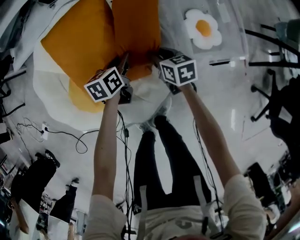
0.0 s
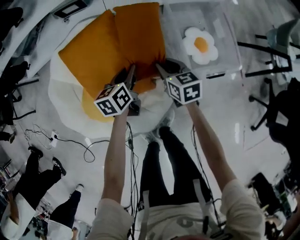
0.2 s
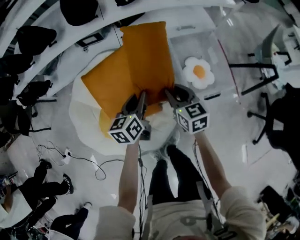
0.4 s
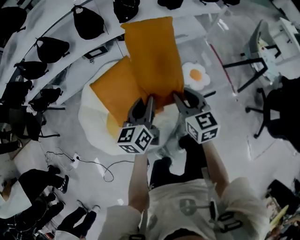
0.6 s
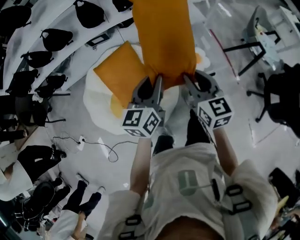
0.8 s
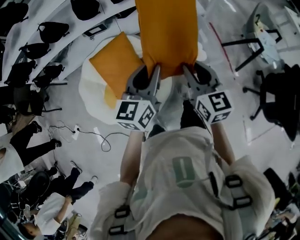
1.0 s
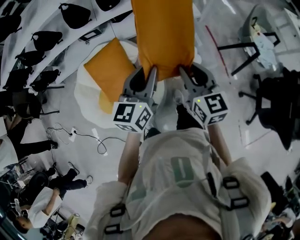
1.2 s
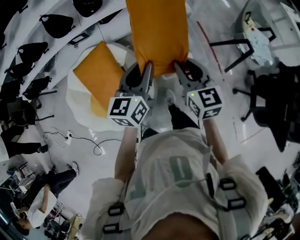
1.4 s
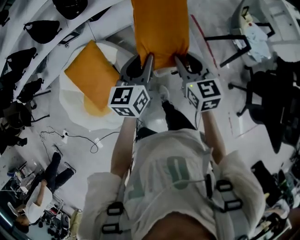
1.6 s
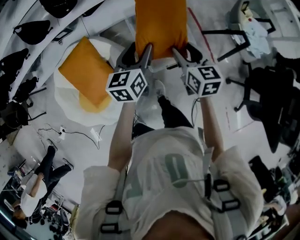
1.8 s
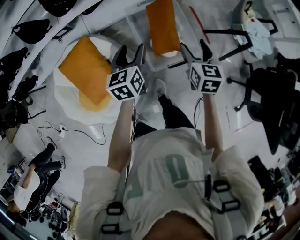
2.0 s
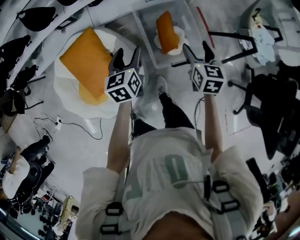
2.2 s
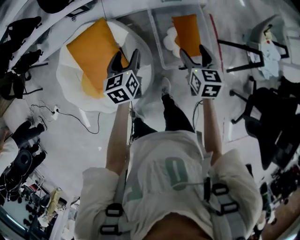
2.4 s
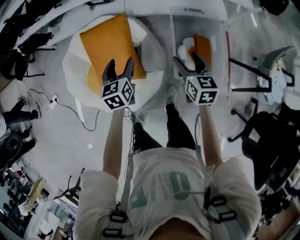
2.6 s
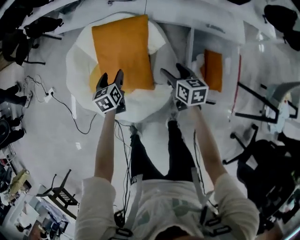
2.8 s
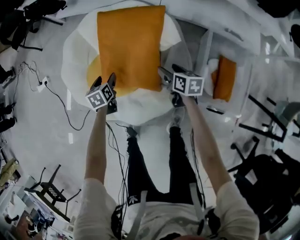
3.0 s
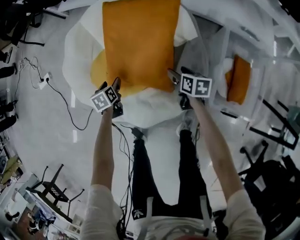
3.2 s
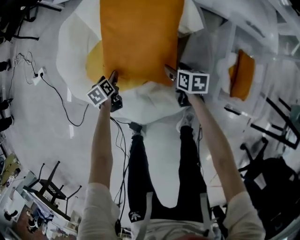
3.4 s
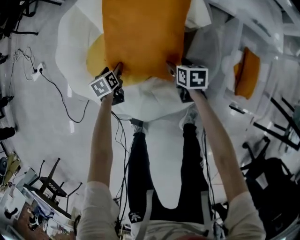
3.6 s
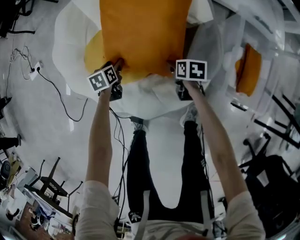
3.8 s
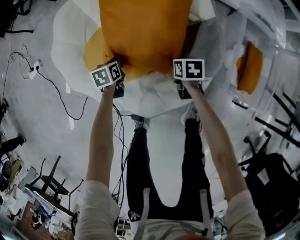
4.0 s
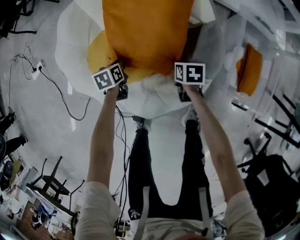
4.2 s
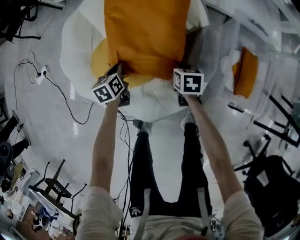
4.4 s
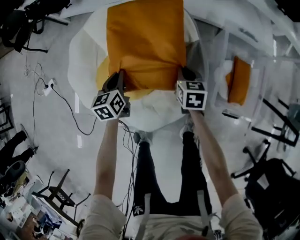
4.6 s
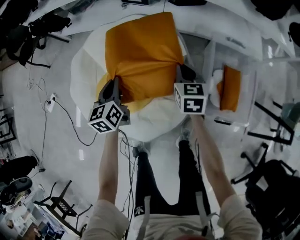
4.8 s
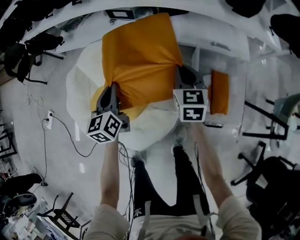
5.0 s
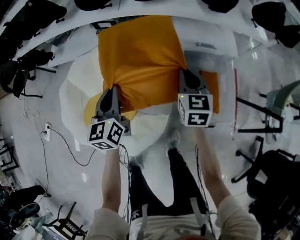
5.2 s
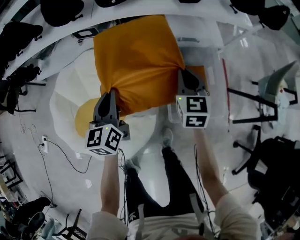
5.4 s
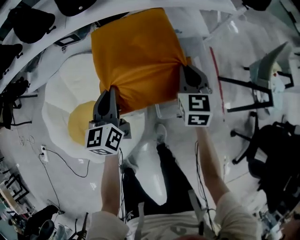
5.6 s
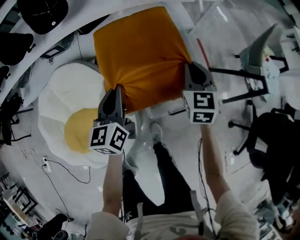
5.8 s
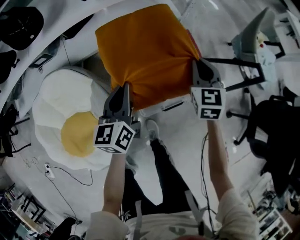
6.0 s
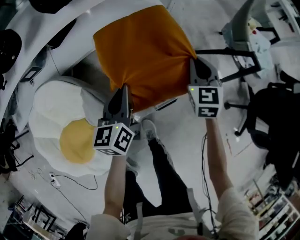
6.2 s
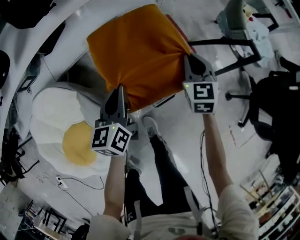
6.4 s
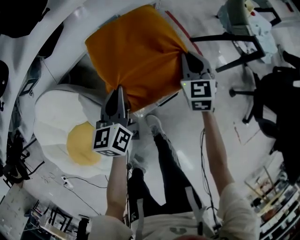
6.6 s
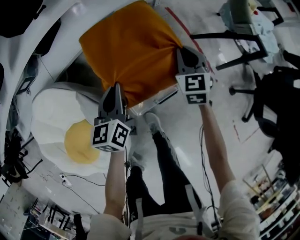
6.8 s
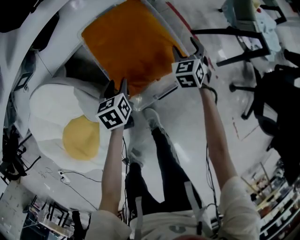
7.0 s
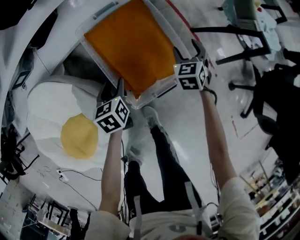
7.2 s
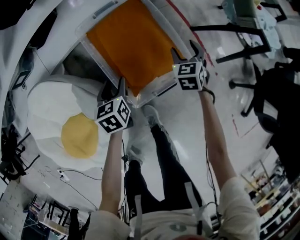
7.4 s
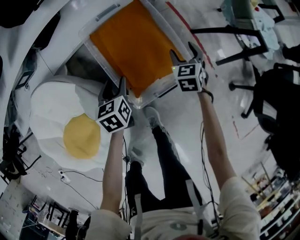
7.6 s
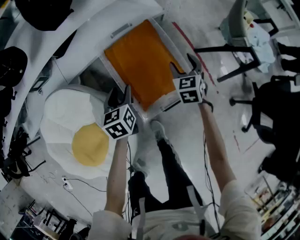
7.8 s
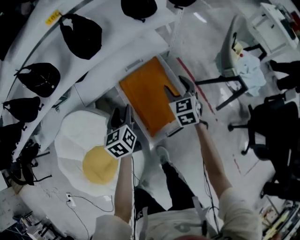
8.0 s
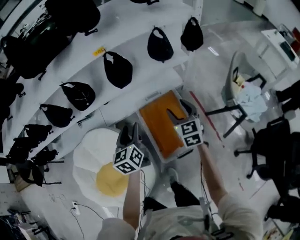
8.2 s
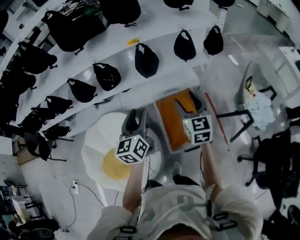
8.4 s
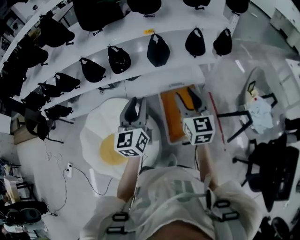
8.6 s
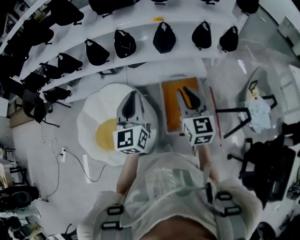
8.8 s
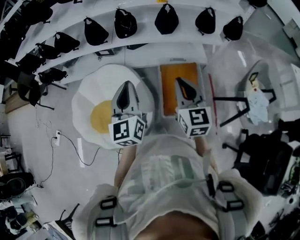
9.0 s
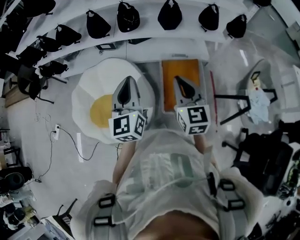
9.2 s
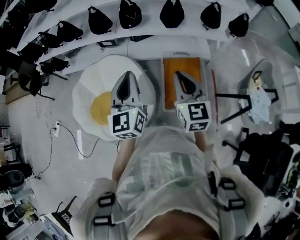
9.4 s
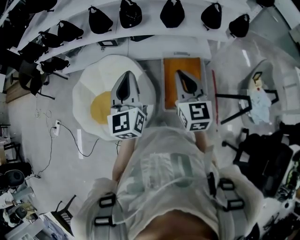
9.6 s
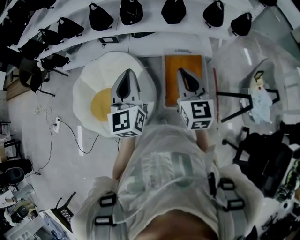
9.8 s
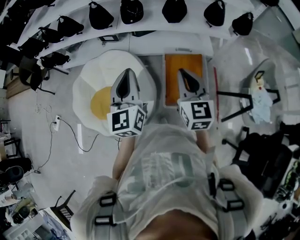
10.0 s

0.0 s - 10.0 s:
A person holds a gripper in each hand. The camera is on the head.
0.0 s - 1.4 s: Both grippers move upward and to the right, approximately 60 cm. The left gripper changes its angle by roughly 40 degrees. Meanwhile the right gripper turns by about 40 degrees.
1.4 s - 2.8 s: Both grippers travel together downward, approximately 30 cm. The left gripper tilts its fingers some 30 degrees downward, and opens, while the right gripper turns by approximately 40 degrees, and opens up.
2.8 s - 4.2 s: The right gripper goes about 35 cm downward, turns by roughly 30 degrees, and closes its fingers, while the left gripper is displaced downward and to the left by some 30 cm, turns by roughly 20 degrees, and closes its fingers.
4.2 s - 5.8 s: The pair of grippers is taken roughly 50 cm. The left gripper angles its fingers upward, by about 40 degrees, while the right gripper tilts its fingers about 40 degrees upward.
5.8 s - 7.2 s: The two grippers go approximately 25 cm downward and to the right. The left gripper tilts its fingers some 30 degrees downward, and opens up. Meanwhile the right gripper swivels approximately 30 degrees, and opens its fingers.
7.2 s - 8.6 s: Both grippers move upward, some 60 cm. The left gripper angles its fingers upward, by roughly 50 degrees. The right gripper angles its fingers upward, by some 40 degrees.
8.6 s - 10.0 s: The grippers both shift backward and to the left by roughly 10 cm. The left gripper closes its fingers. The right gripper closes up.

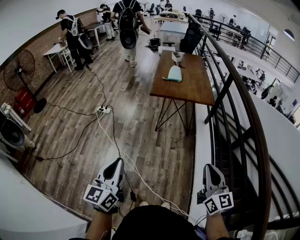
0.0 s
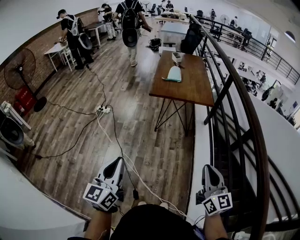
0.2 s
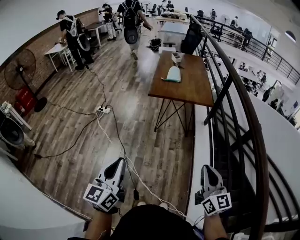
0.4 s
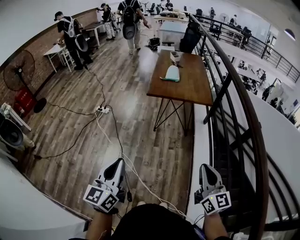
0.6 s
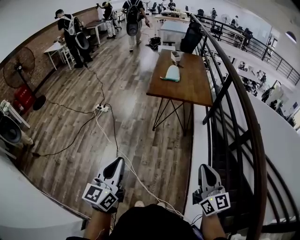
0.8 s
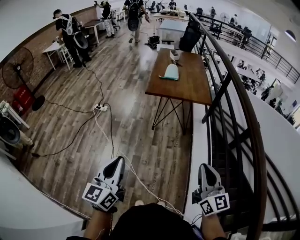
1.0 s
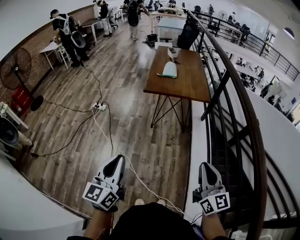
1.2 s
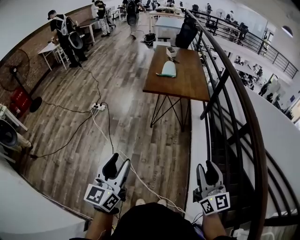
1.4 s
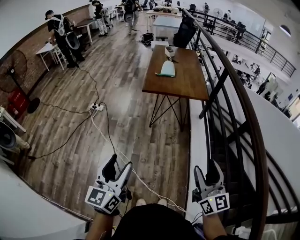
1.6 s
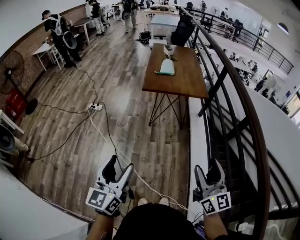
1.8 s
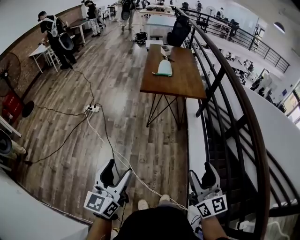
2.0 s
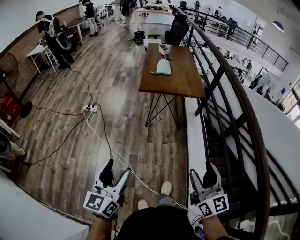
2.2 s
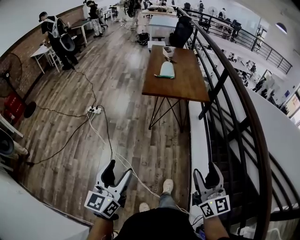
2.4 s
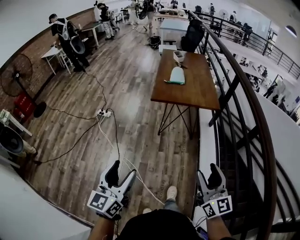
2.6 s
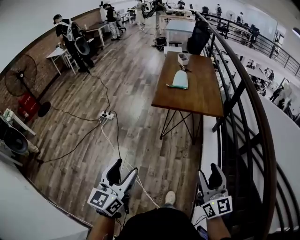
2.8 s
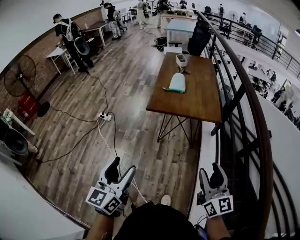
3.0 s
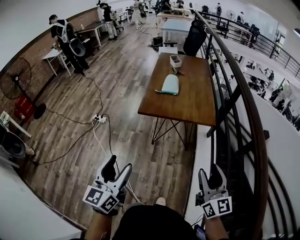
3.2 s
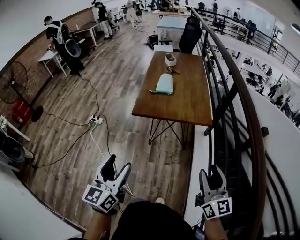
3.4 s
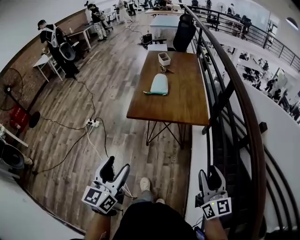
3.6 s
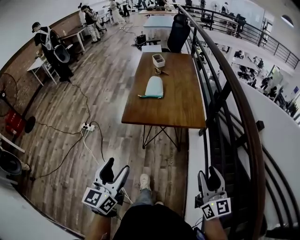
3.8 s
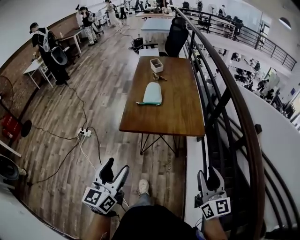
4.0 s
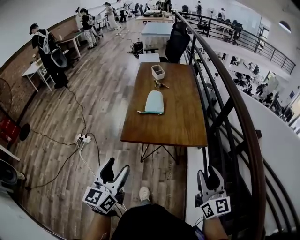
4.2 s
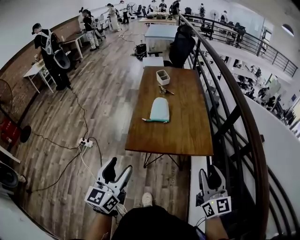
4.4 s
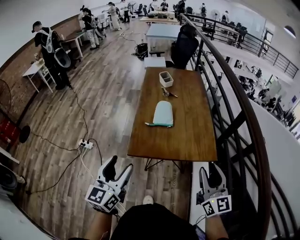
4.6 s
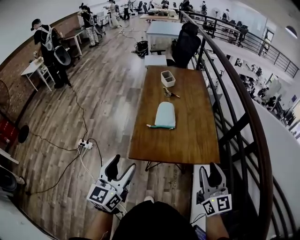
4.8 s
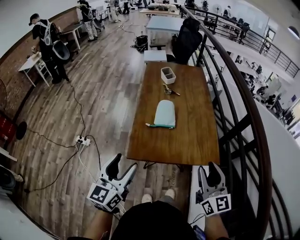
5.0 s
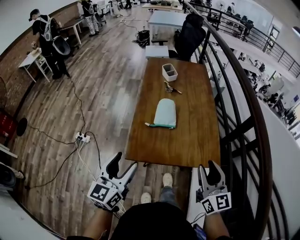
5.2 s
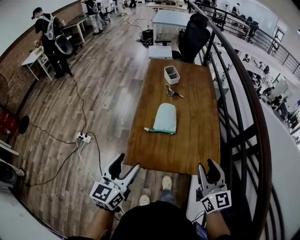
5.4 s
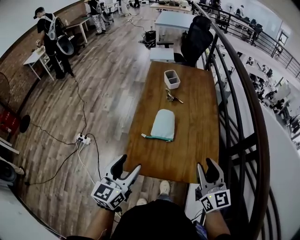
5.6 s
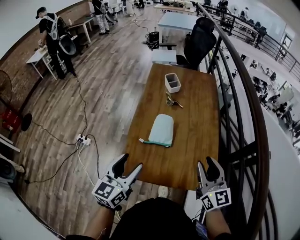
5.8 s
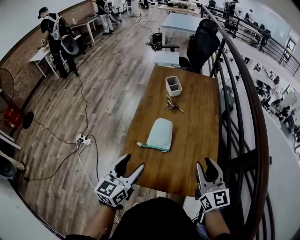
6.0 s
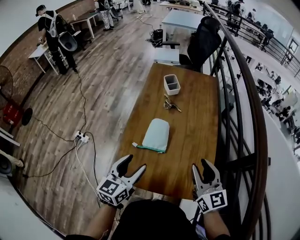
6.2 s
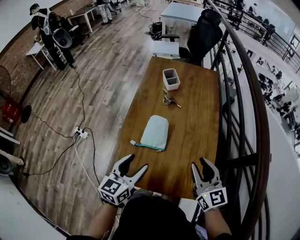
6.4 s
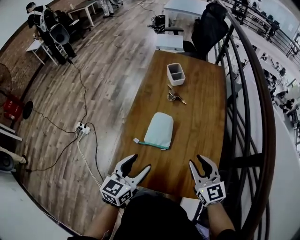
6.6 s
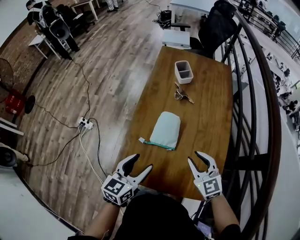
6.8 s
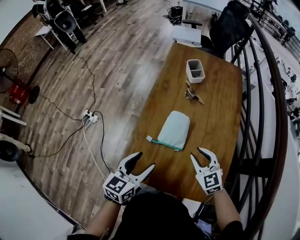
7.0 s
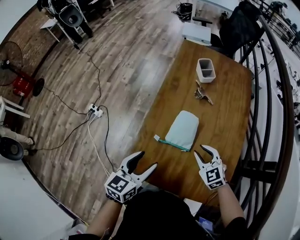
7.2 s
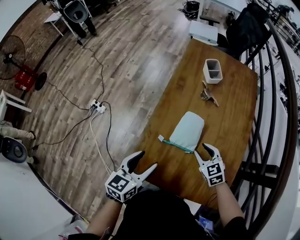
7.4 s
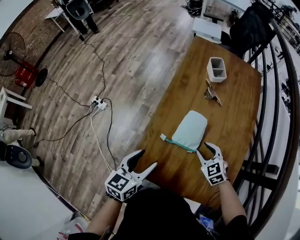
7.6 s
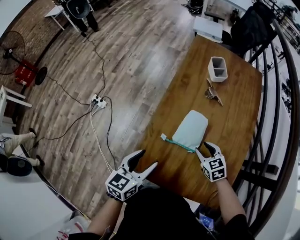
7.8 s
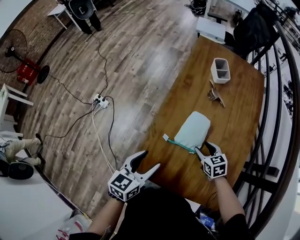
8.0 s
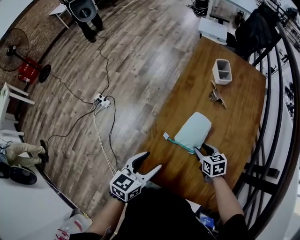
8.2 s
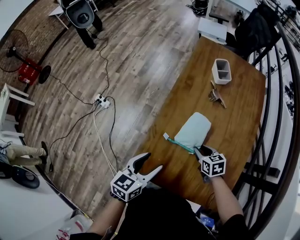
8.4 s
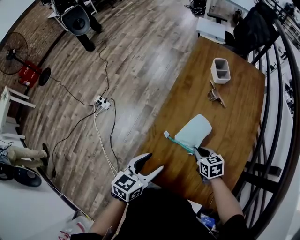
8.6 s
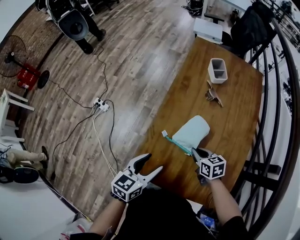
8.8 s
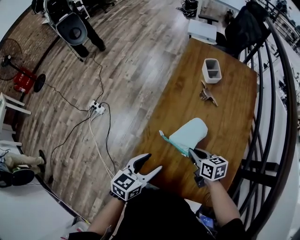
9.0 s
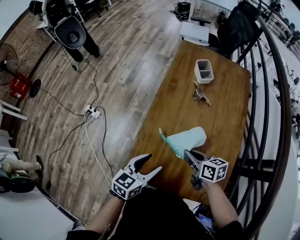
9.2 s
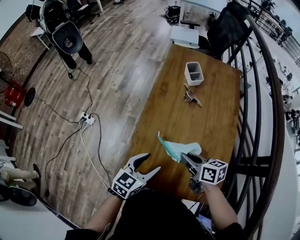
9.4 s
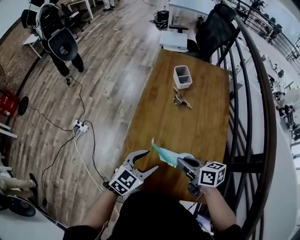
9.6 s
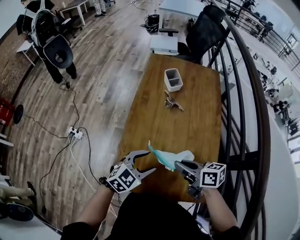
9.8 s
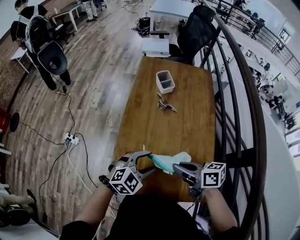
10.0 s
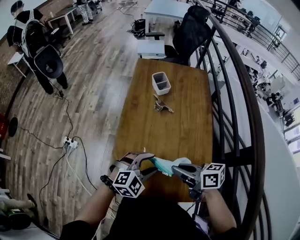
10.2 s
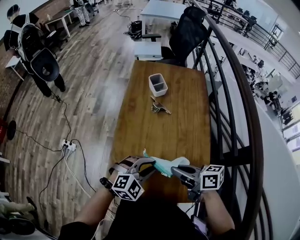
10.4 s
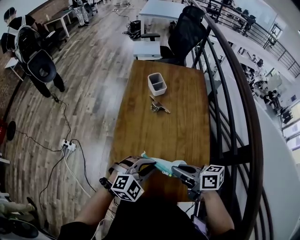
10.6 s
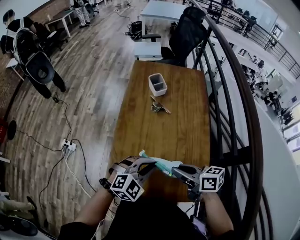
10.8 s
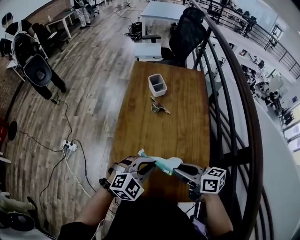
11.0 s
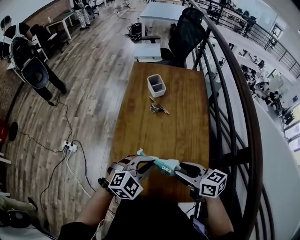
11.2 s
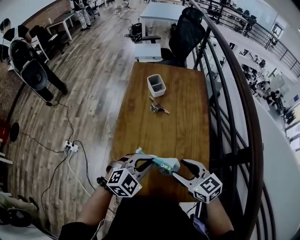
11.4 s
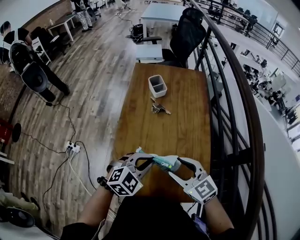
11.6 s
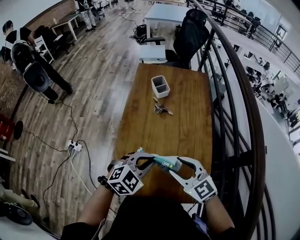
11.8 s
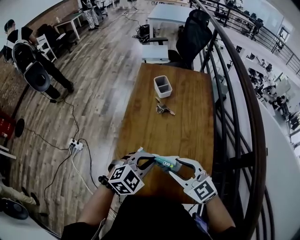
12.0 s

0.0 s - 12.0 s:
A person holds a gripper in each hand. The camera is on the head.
0.0 s - 1.6 s: The left gripper opens up; the right gripper opens its fingers.
1.6 s - 3.0 s: Both grippers move forward, some 20 cm.
3.0 s - 4.4 s: The grippers both shift forward by some 30 cm.
4.4 s - 6.0 s: Both grippers move forward, about 30 cm.
6.0 s - 7.6 s: The left gripper heads downward, covering approximately 10 cm. Meanwhile the right gripper goes about 25 cm downward and forward, and tips its fingers downward by approximately 40 degrees.
7.6 s - 9.0 s: The right gripper twists roughly 50 degrees clockwise, seen from behind, and closes its fingers.
9.0 s - 10.4 s: The right gripper shifts roughly 15 cm upward and backward, and swivels about 20 degrees. Meanwhile the left gripper heads to the right, covering some 15 cm, rolls clockwise, seen from behind, by about 70 degrees, and closes its fingers.
10.4 s - 12.0 s: The right gripper twists roughly 60 degrees counterclockwise, seen from behind, and opens up.

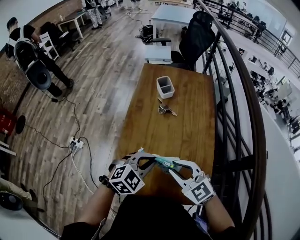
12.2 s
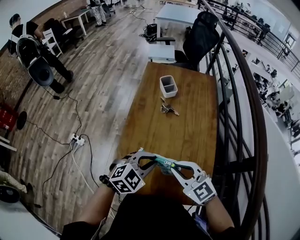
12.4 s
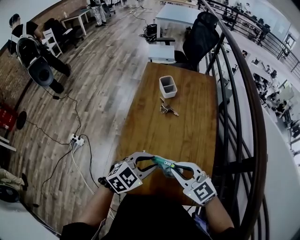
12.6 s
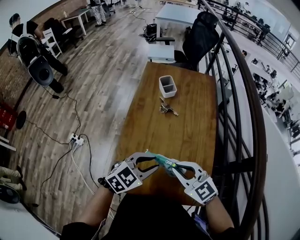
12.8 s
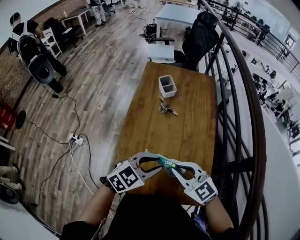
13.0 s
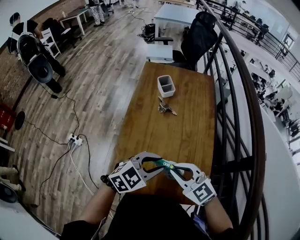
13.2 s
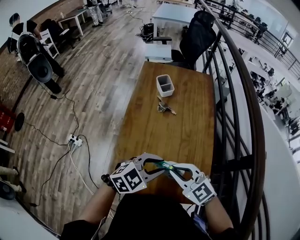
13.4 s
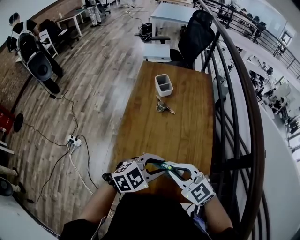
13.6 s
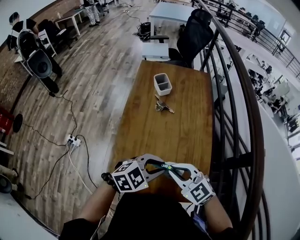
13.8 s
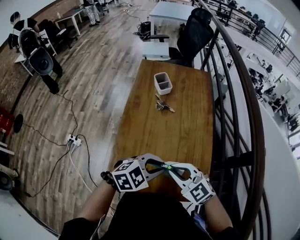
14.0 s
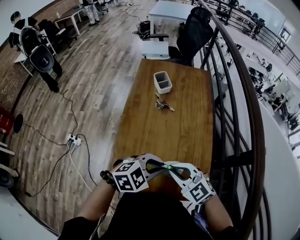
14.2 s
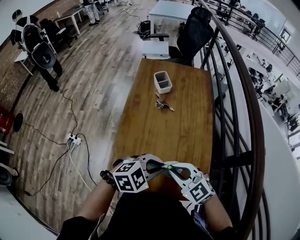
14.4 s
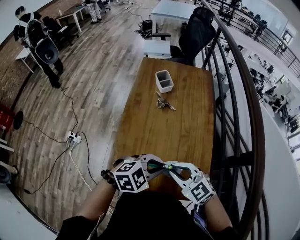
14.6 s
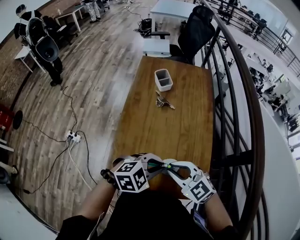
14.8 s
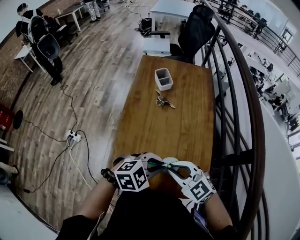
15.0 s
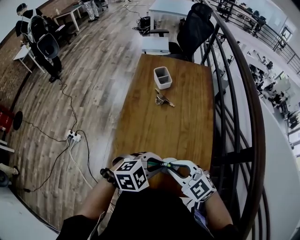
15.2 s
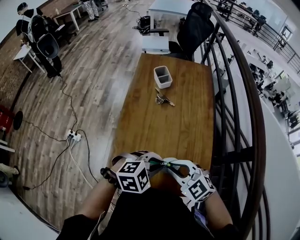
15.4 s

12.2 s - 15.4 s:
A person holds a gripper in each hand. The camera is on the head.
12.2 s - 13.8 s: The left gripper shifts by about 5 cm.
13.8 s - 15.4 s: The grippers move only a little.
